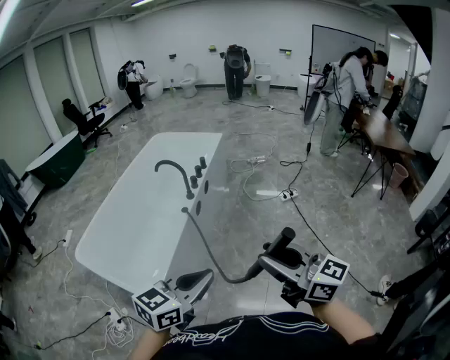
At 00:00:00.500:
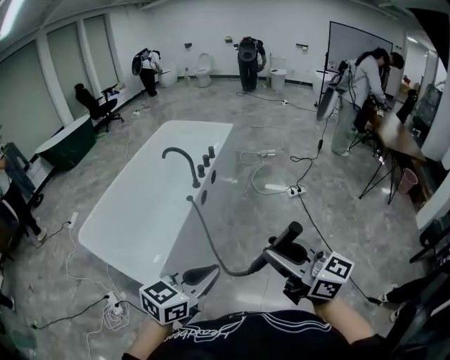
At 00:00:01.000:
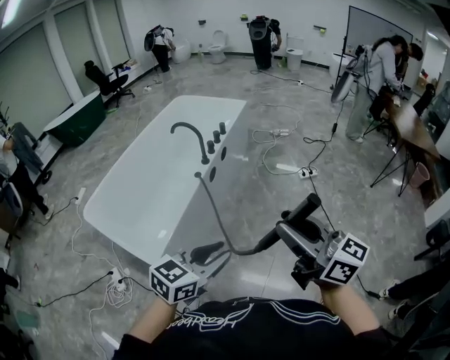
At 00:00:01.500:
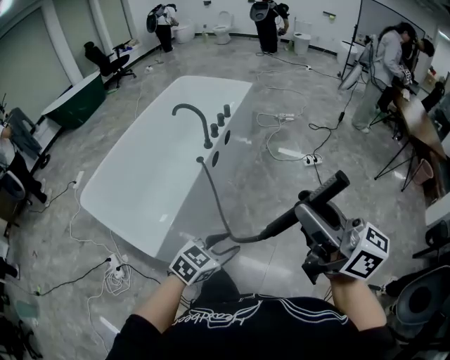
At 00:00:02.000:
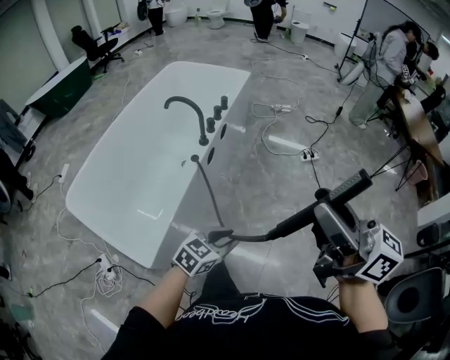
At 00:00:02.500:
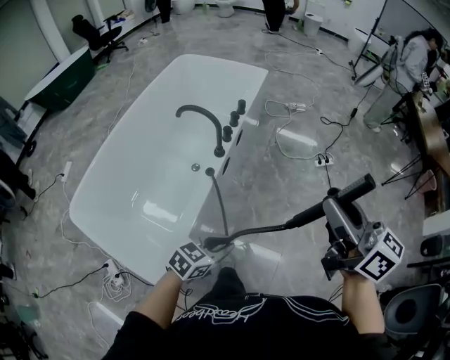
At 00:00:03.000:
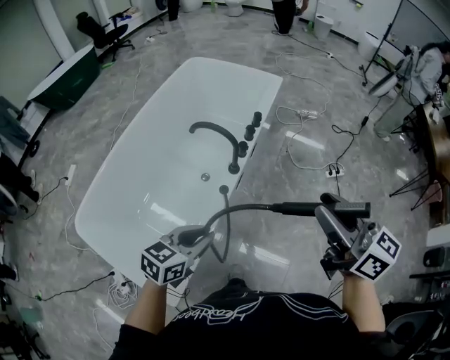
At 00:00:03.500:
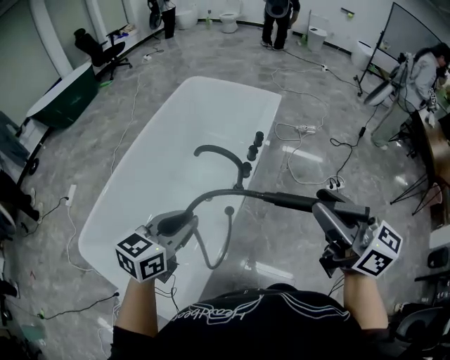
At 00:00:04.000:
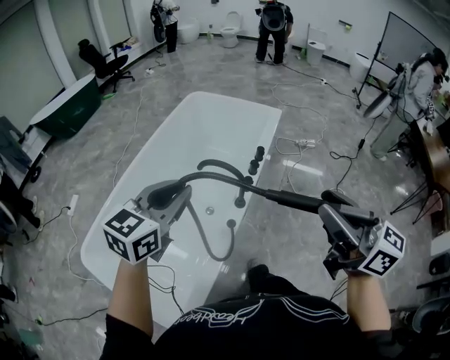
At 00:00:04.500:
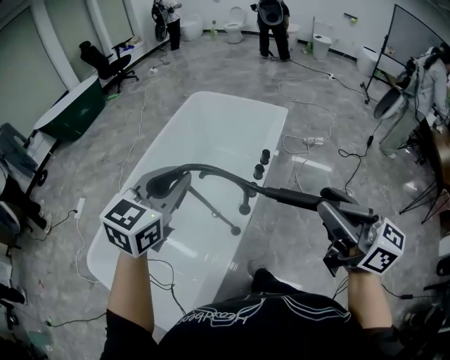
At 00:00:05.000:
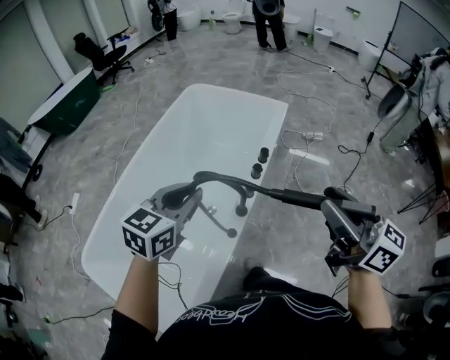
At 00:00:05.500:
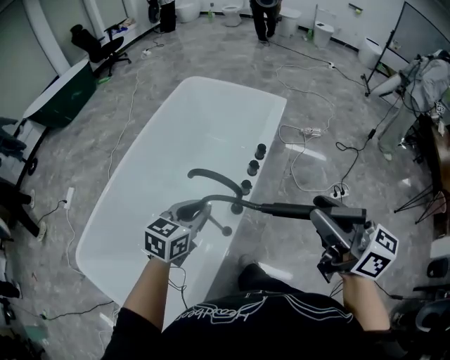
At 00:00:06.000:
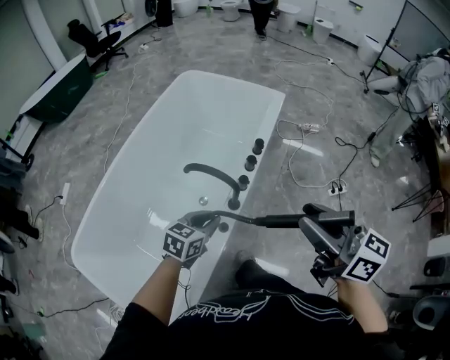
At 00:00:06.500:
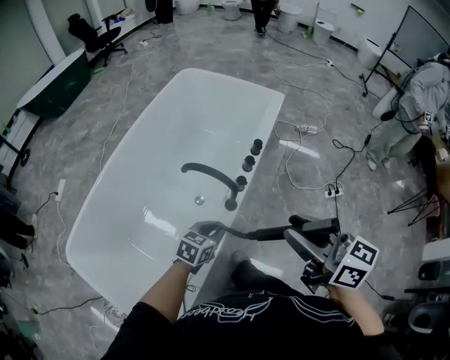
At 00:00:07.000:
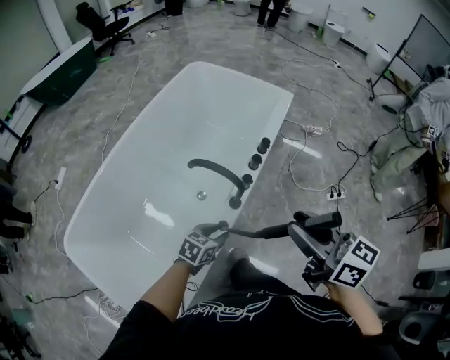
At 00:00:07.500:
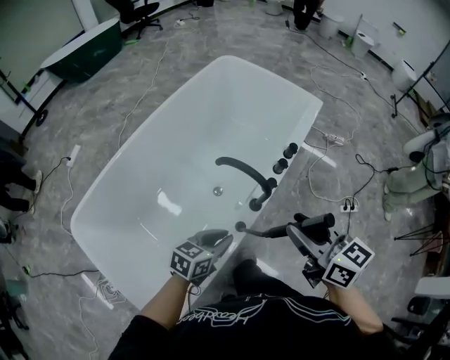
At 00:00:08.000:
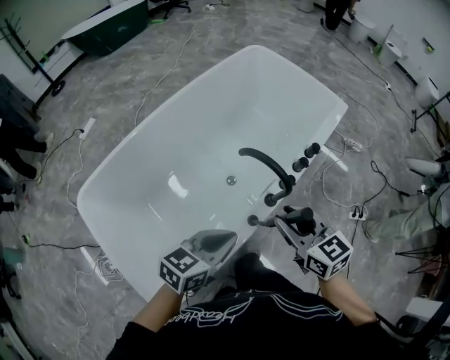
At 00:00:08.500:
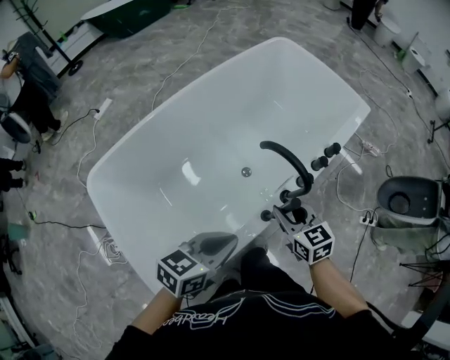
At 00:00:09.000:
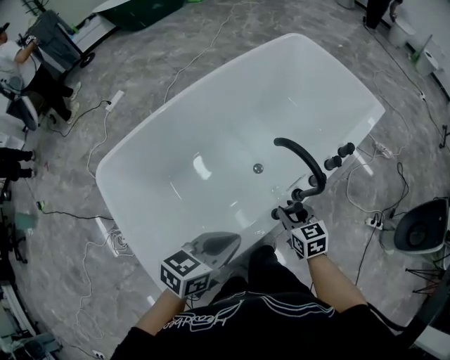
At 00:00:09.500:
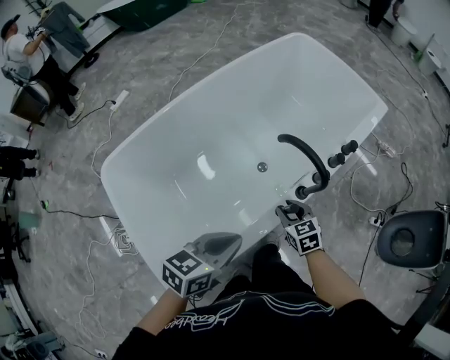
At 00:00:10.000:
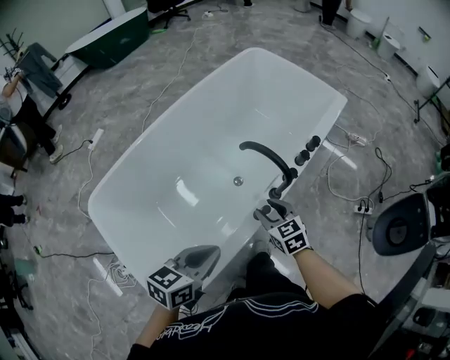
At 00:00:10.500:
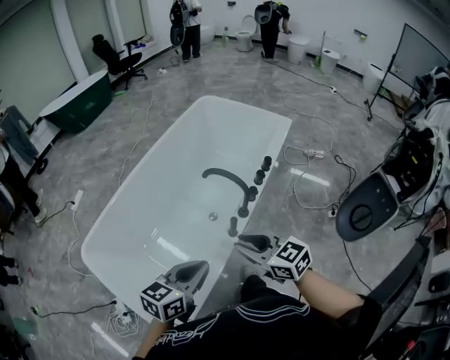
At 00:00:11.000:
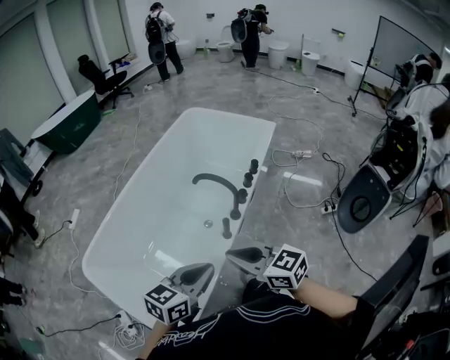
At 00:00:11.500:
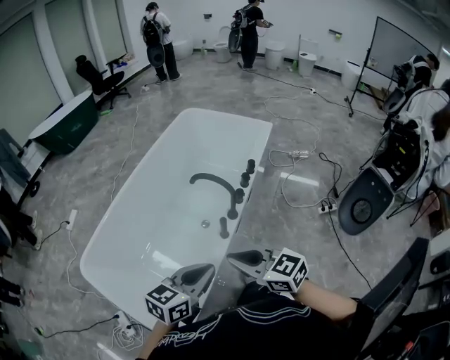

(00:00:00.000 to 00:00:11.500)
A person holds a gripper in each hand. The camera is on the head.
00:00:00.000 - 00:00:02.000: The right gripper travels forward and upward by about 15 cm. Meanwhile the left gripper goes some 25 cm downward and forward, and opens.
00:00:02.000 - 00:00:04.000: The right gripper is displaced forward and to the left by approximately 30 cm, while the left gripper heads forward, to the left and upward, covering approximately 50 cm, and swivels about 30 degrees.
00:00:04.000 - 00:00:06.000: The left gripper travels downward by approximately 25 cm, and swivels about 30 degrees; the right gripper shifts roughly 15 cm downward and forward.
00:00:06.000 - 00:00:07.500: The right gripper goes about 10 cm to the left and downward, while the left gripper travels backward by some 5 cm, and reaches roughly 10 cm downward, then returns.
00:00:07.500 - 00:00:09.500: The left gripper shifts some 15 cm to the left, upward and backward, while the right gripper shifts roughly 30 cm downward, and swivels some 30 degrees.
00:00:09.500 - 00:00:11.500: The left gripper travels upward, backward and to the right by roughly 15 cm, and turns by about 20 degrees; the right gripper moves upward and backward, some 30 cm, changes its angle by roughly 30 degrees, and closes its fingers.

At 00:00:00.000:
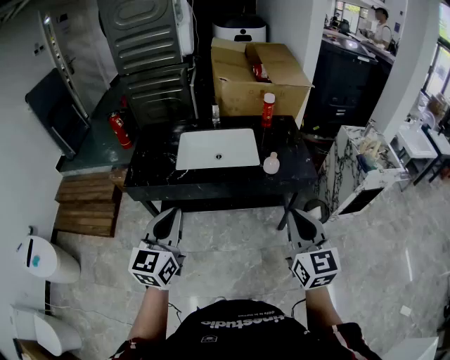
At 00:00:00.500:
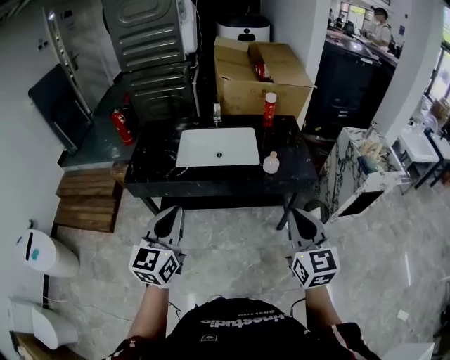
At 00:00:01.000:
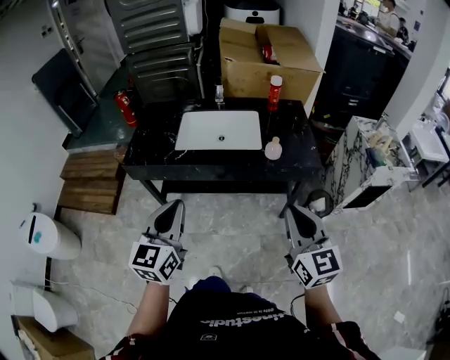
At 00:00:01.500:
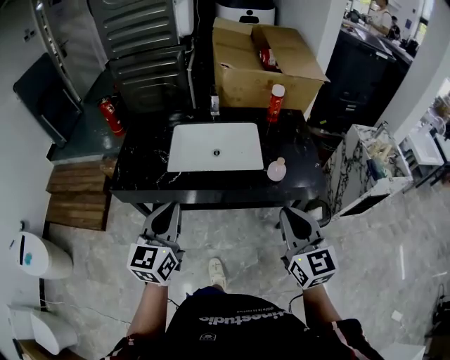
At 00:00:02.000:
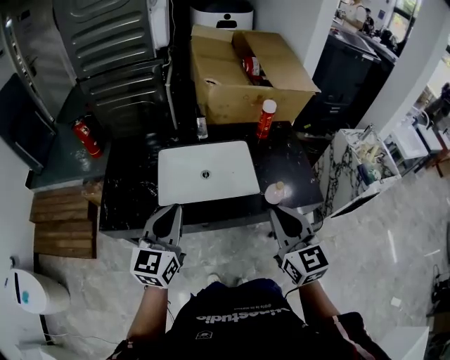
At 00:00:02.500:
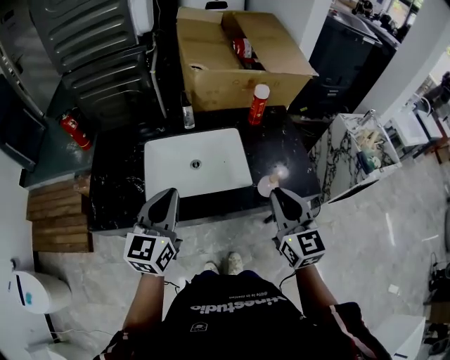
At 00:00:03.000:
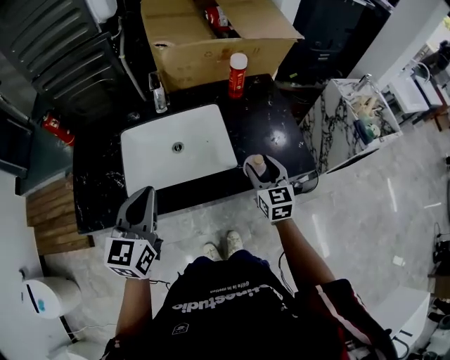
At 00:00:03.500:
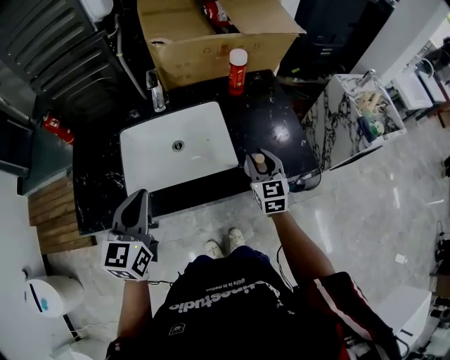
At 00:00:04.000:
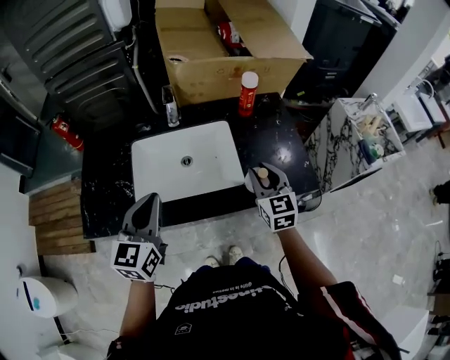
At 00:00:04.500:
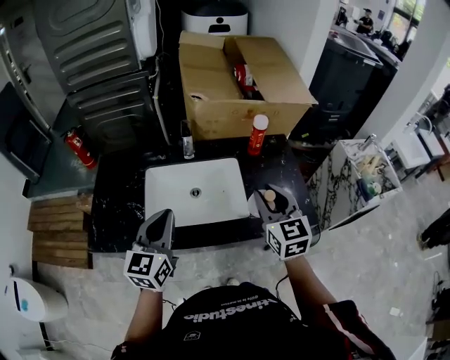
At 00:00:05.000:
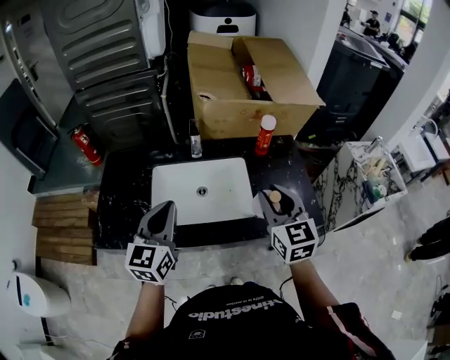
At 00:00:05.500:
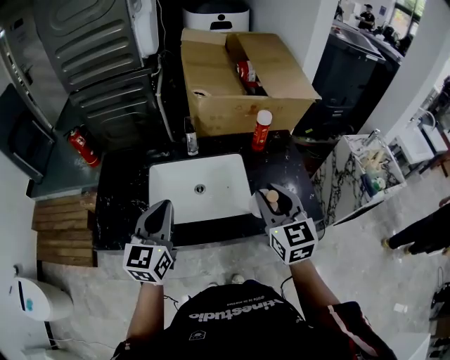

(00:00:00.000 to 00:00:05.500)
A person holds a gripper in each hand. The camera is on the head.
00:00:00.000 - 00:00:02.000: The grippers both shift forward by some 25 cm.
00:00:02.000 - 00:00:03.500: The left gripper is displaced forward and downward by approximately 10 cm. The right gripper moves downward, forward and to the right, roughly 30 cm, and opens.
00:00:03.500 - 00:00:05.500: The left gripper shifts some 5 cm upward, while the right gripper travels upward by approximately 20 cm.

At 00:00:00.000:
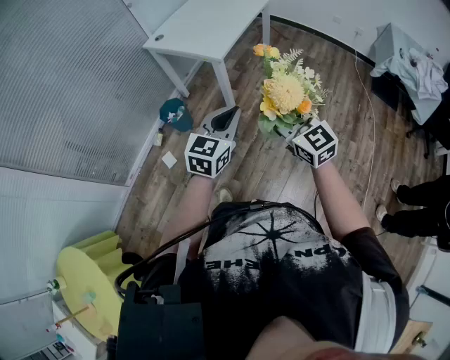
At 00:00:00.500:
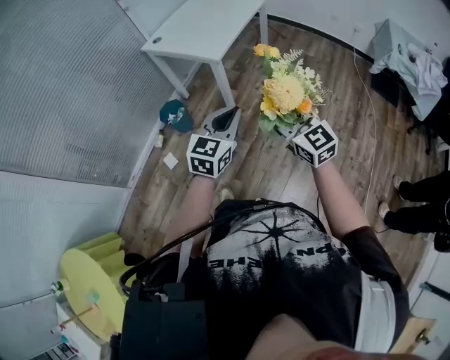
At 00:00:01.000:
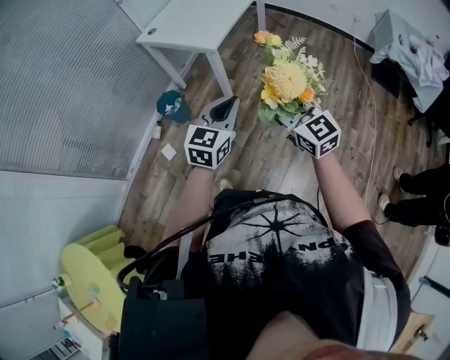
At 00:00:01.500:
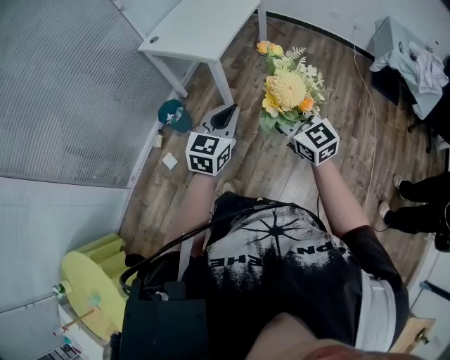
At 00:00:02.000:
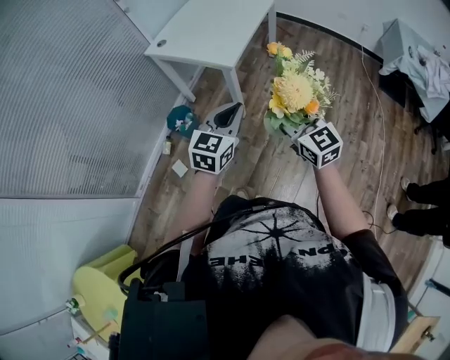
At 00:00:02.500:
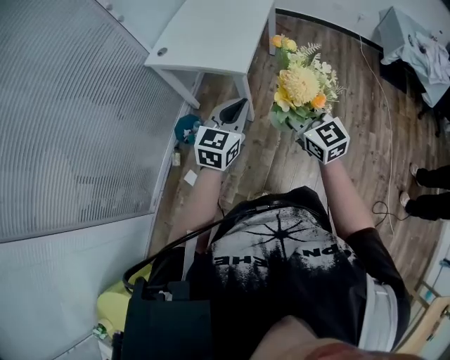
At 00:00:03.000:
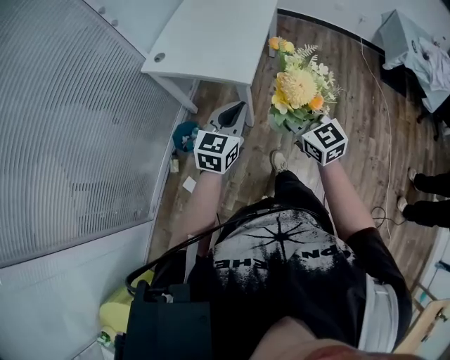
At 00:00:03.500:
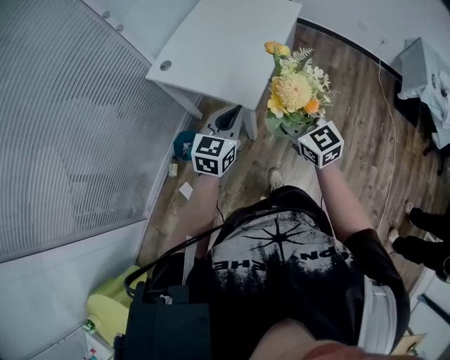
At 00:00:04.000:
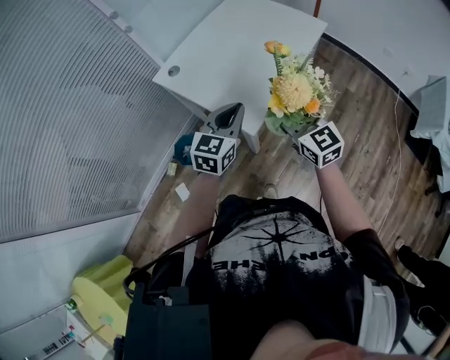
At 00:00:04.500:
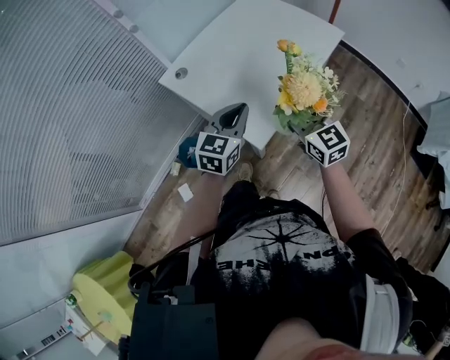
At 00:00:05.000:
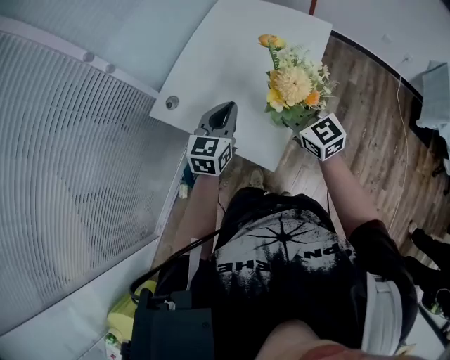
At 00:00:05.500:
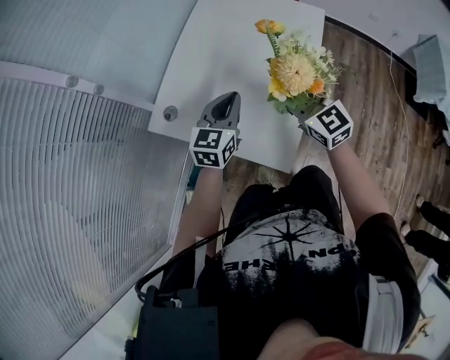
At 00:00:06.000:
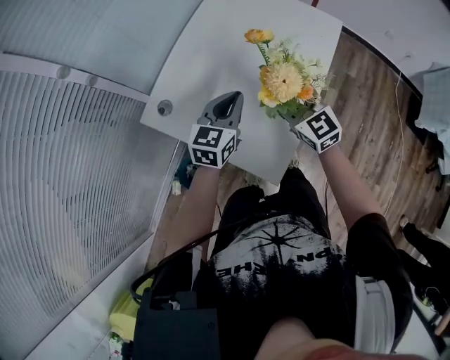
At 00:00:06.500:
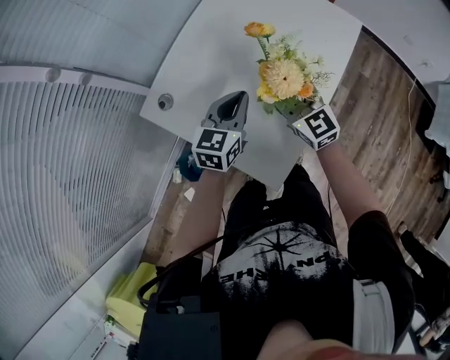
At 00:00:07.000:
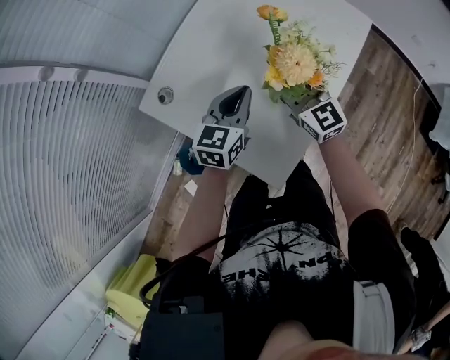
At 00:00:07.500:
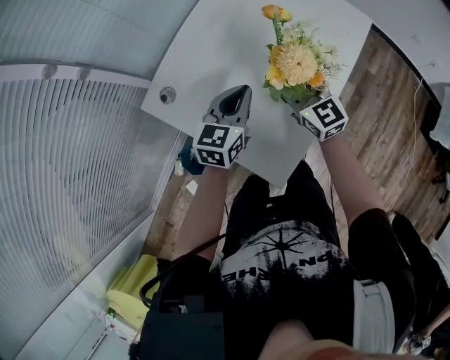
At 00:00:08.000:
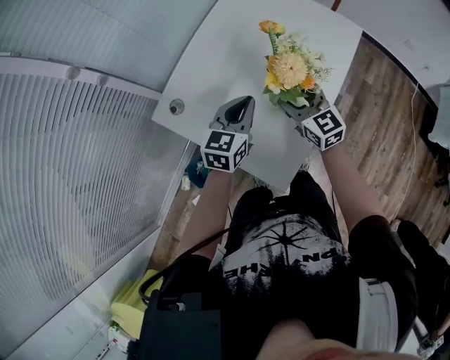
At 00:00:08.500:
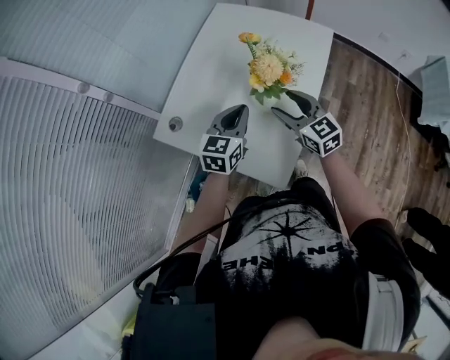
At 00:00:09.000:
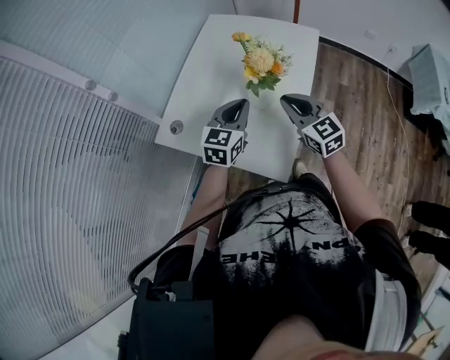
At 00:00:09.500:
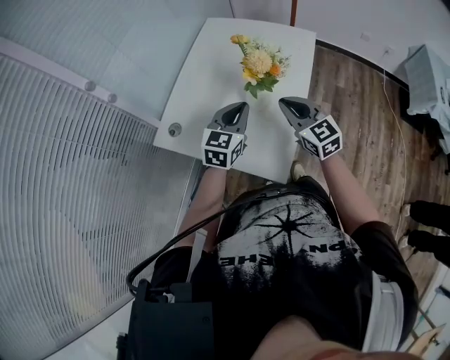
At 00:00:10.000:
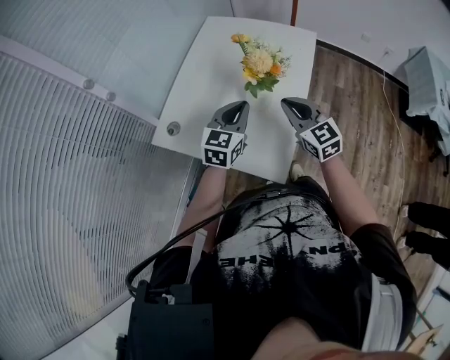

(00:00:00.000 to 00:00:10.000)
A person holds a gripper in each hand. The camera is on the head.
00:00:00.000 - 00:00:02.000: The right gripper goes some 10 cm forward; the left gripper shifts about 15 cm forward and to the left.
00:00:02.000 - 00:00:04.000: Both grippers move forward, about 40 cm.
00:00:04.000 - 00:00:06.000: The two grippers go approximately 25 cm forward.
00:00:06.000 - 00:00:08.000: The right gripper changes place by roughly 5 cm.
00:00:08.000 - 00:00:10.000: The right gripper is displaced backward, upward and to the right by roughly 10 cm, and closes, while the left gripper ends up roughly 5 cm from where it was.
